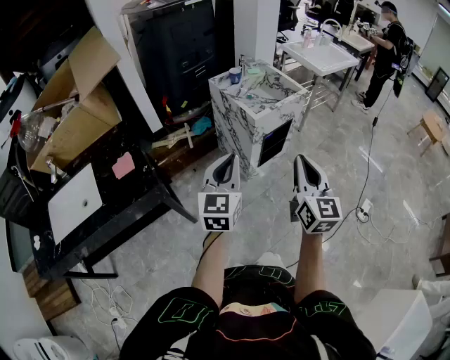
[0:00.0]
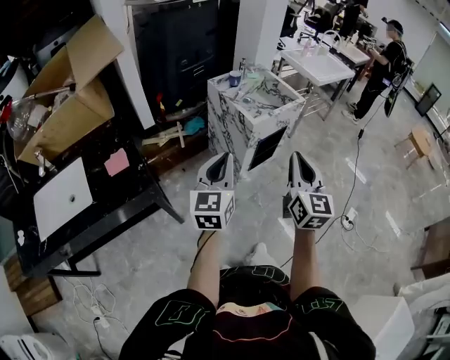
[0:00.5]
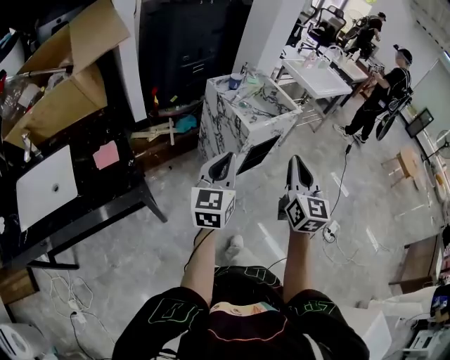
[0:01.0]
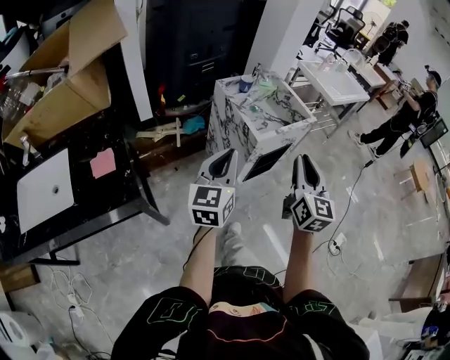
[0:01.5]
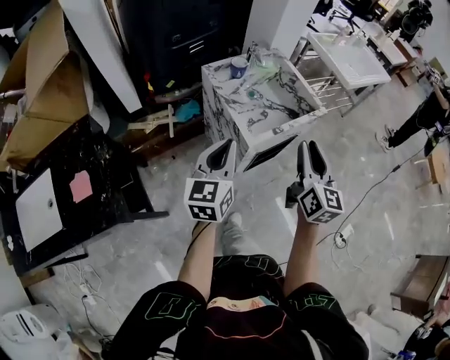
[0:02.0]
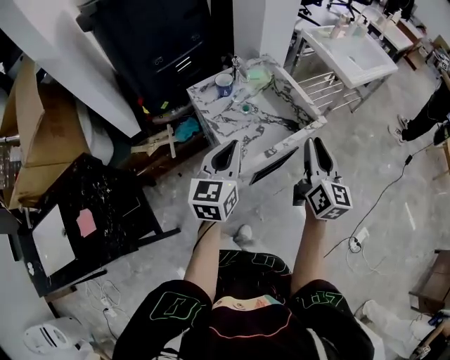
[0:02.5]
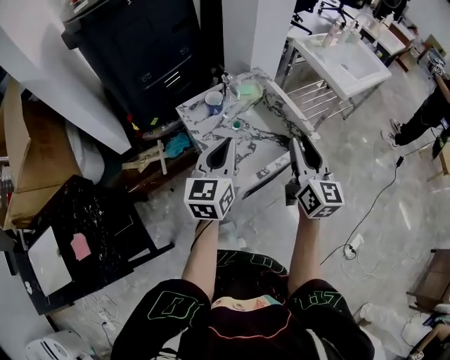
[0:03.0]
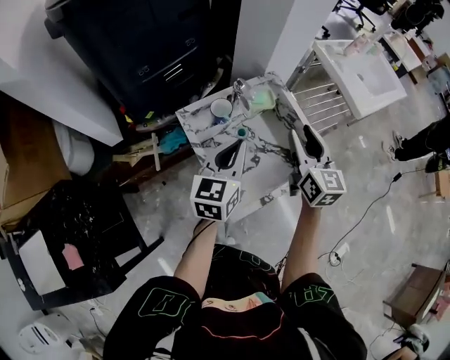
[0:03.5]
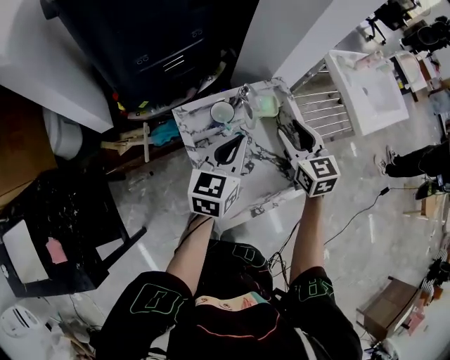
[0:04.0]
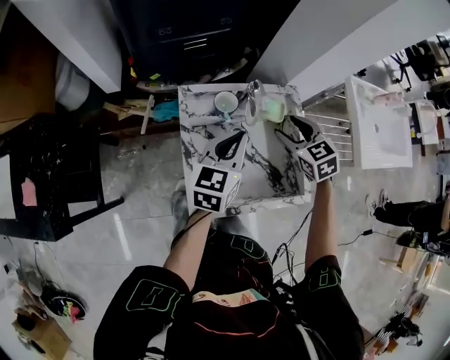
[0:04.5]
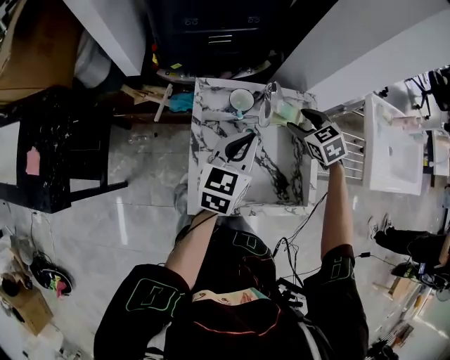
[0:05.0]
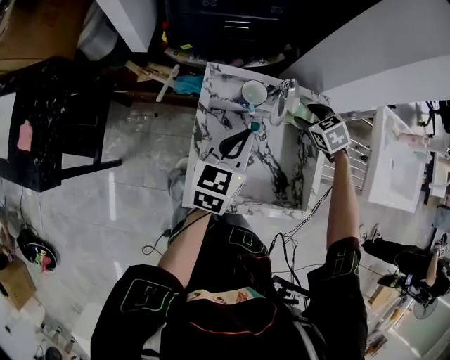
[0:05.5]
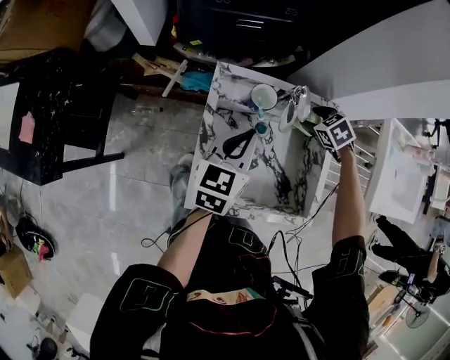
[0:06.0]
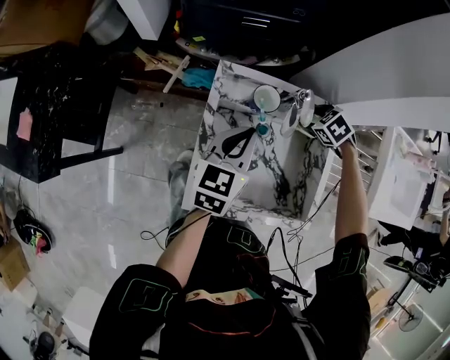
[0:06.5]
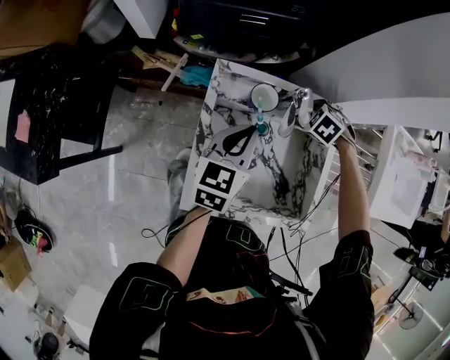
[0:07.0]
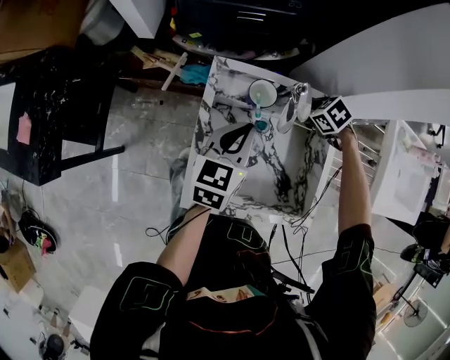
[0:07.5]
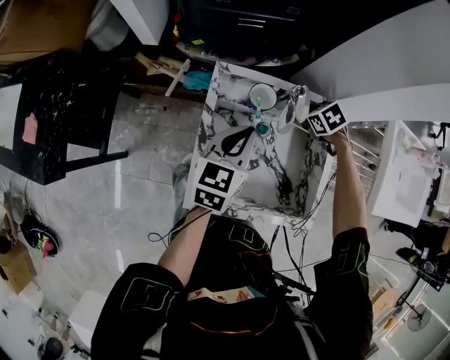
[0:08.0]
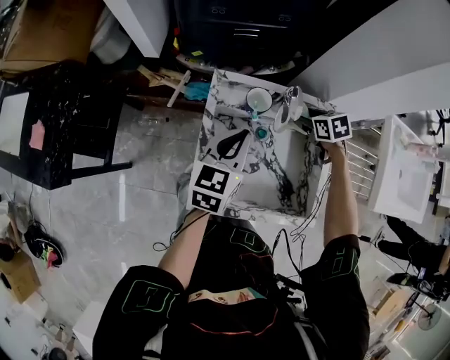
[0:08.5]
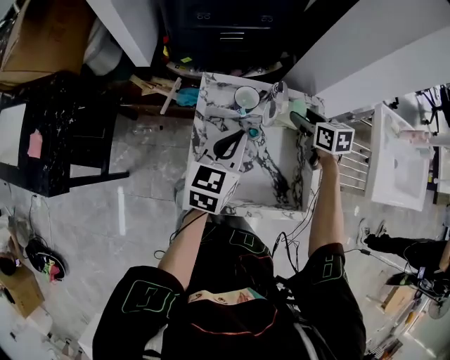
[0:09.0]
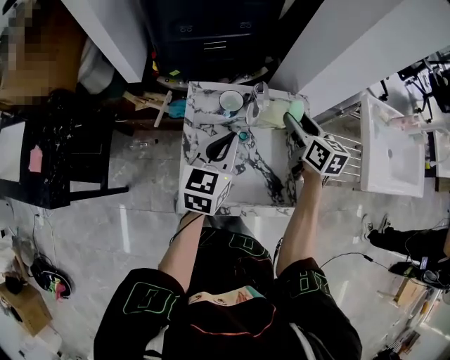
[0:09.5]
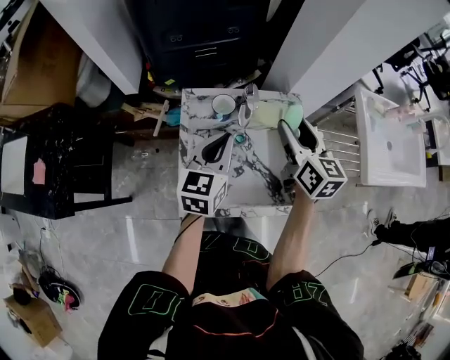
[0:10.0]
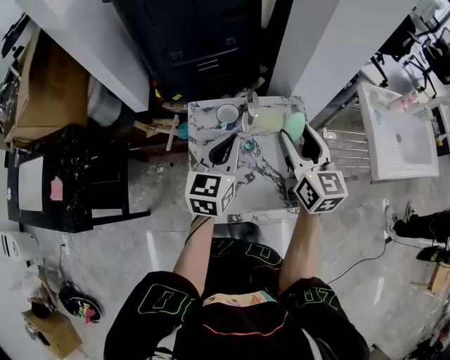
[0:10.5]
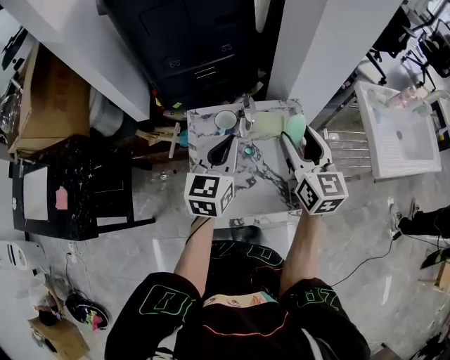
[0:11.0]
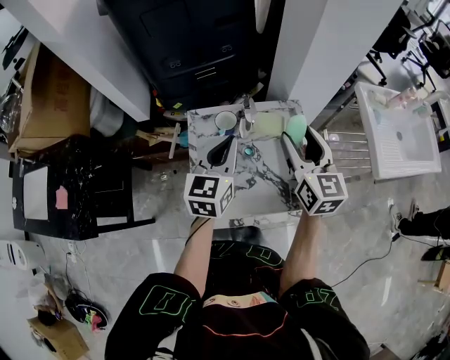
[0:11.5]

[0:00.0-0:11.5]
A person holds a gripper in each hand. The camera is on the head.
0:00.0 to 0:02.0: The two grippers go roughly 35 cm forward. The right gripper opens.
0:02.0 to 0:04.0: The two grippers go approximately 40 cm forward. The right gripper changes its angle by approximately 40 degrees.
0:04.0 to 0:06.0: The right gripper shifts roughly 20 cm downward, and points its fingers some 50 degrees further downward, while the left gripper goes approximately 5 cm downward, and changes its angle by roughly 30 degrees.
0:07.5 to 0:09.5: The right gripper goes some 20 cm upward, and points its fingers roughly 50 degrees further upward. The left gripper goes about 5 cm upward.
0:09.5 to 0:11.5: The left gripper moves approximately 5 cm. The right gripper shifts roughly 15 cm upward and backward, and turns by approximately 20 degrees.

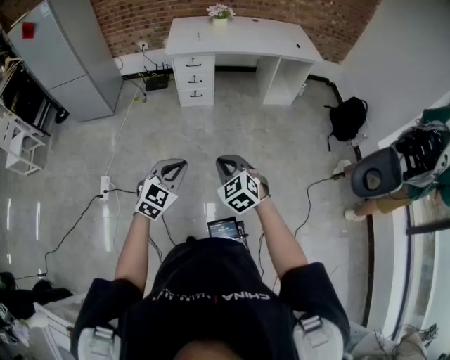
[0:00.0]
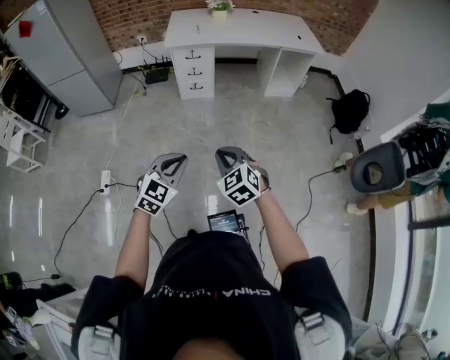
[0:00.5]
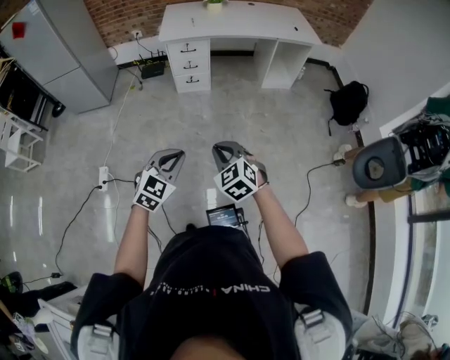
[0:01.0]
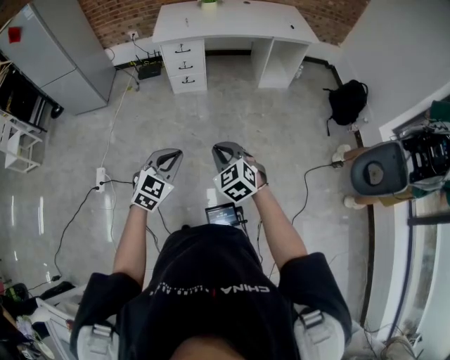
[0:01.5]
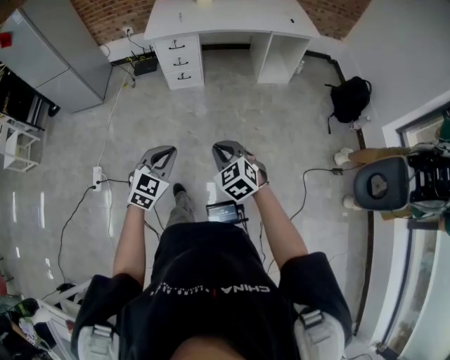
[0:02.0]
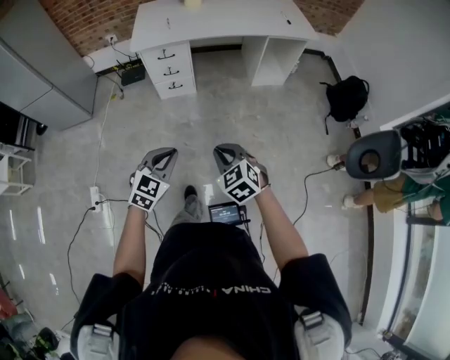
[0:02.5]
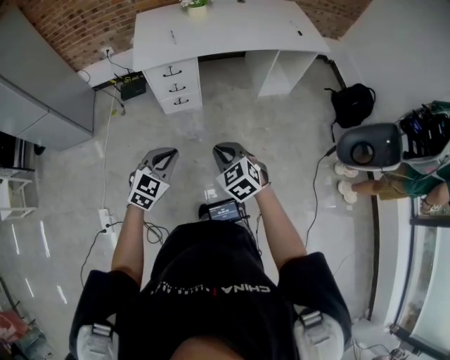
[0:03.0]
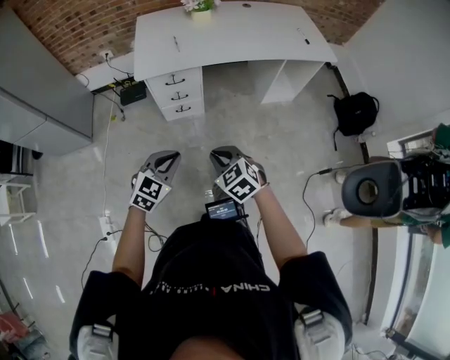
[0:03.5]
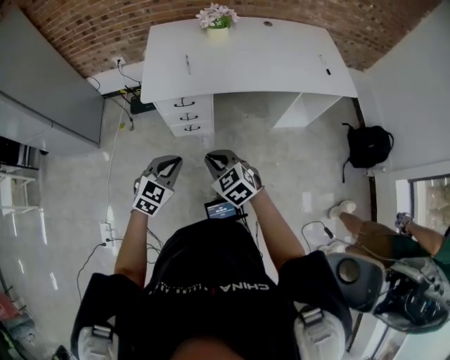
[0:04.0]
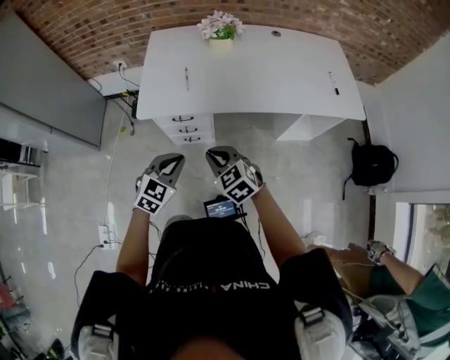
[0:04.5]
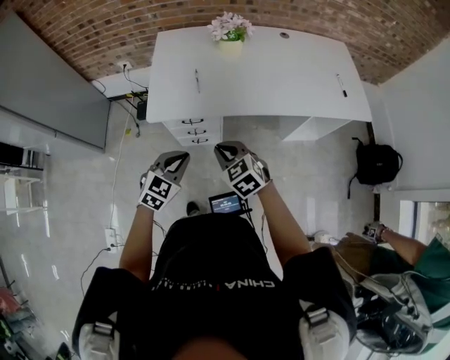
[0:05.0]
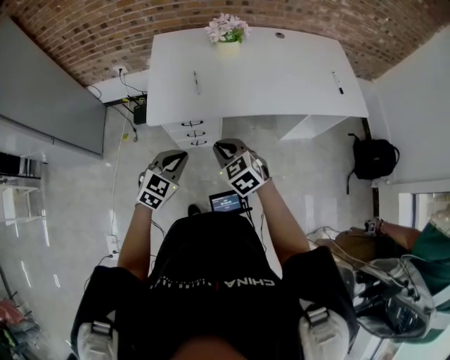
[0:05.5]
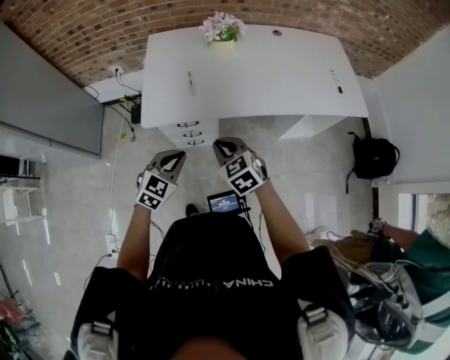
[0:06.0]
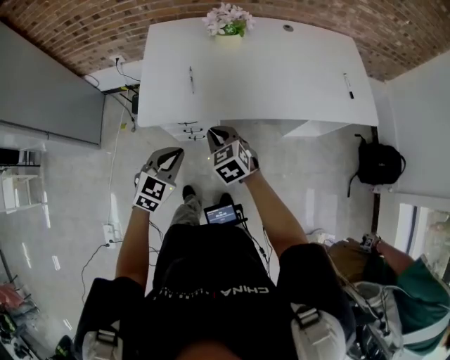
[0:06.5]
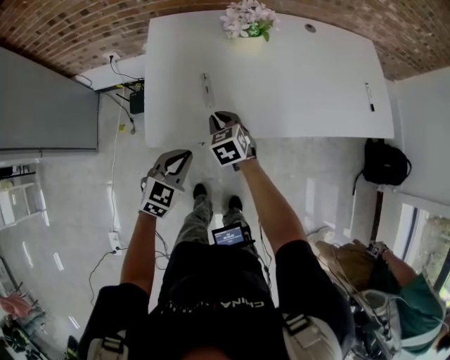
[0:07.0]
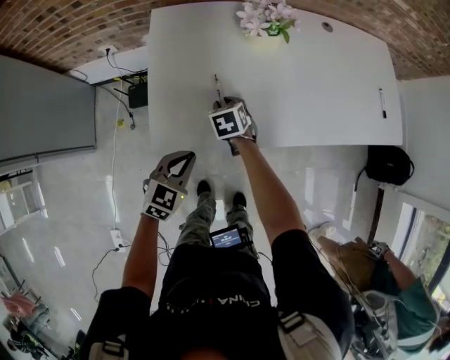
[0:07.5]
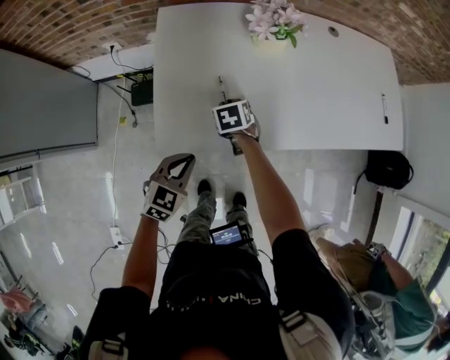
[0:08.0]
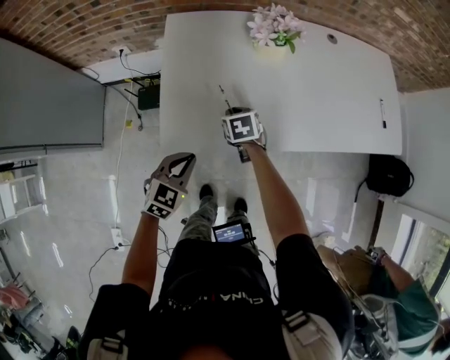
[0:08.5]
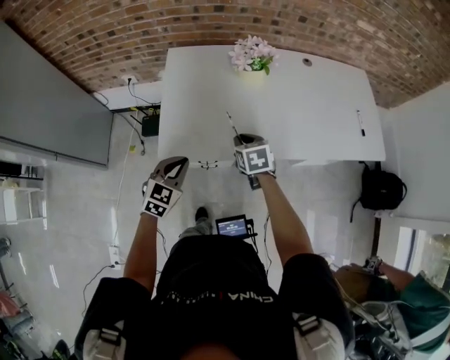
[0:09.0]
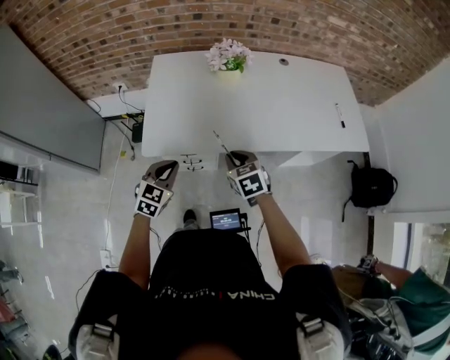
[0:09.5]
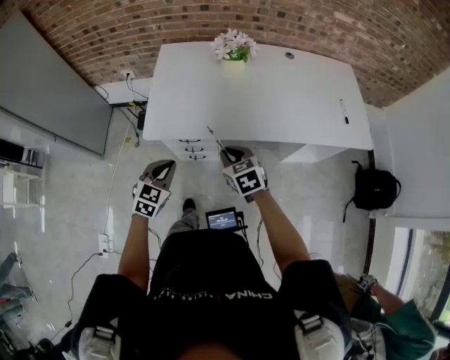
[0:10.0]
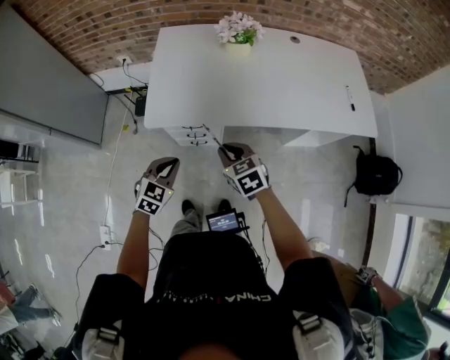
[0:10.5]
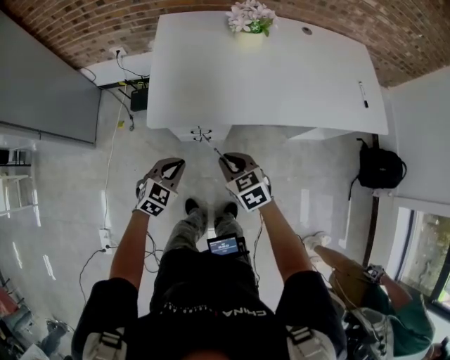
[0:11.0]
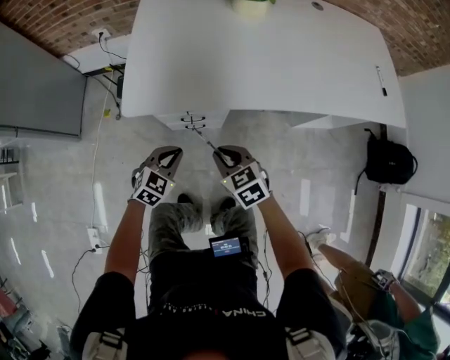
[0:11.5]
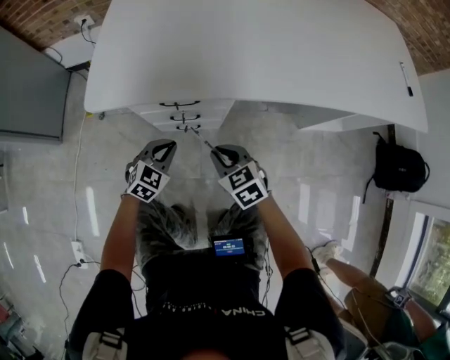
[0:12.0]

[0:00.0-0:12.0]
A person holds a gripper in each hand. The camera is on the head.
0:00.0 to 0:02.0: The grippers both shift to the right and forward by roughly 10 cm.
0:02.0 to 0:04.0: The two grippers travel together, forward, roughly 60 cm.
0:04.0 to 0:06.0: The grippers both shift forward by some 20 cm.
0:06.0 to 0:08.0: The right gripper moves forward, downward and to the left, roughly 40 cm, and swivels approximately 40 degrees. Meanwhile the left gripper is displaced forward, to the left and downward by about 25 cm.
0:08.0 to 0:10.0: The right gripper is displaced backward, upward and to the right by approximately 35 cm, and rotates about 30 degrees, while the left gripper heads backward, upward and to the right, covering approximately 20 cm.
0:10.0 to 0:12.0: The grippers both shift downward by about 40 cm.

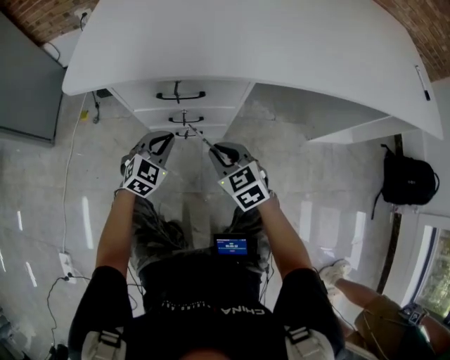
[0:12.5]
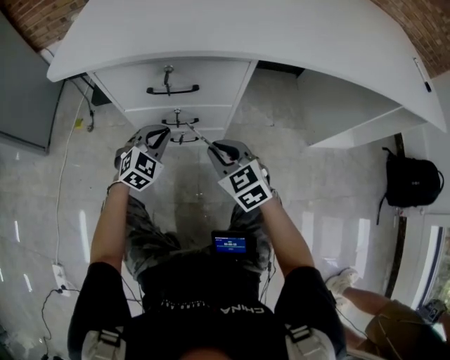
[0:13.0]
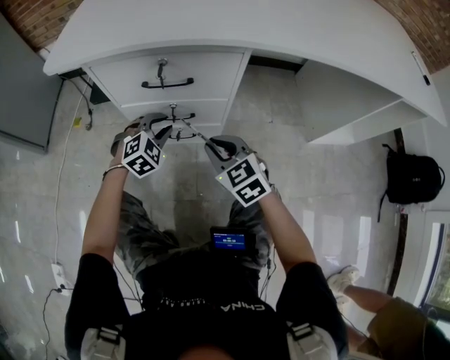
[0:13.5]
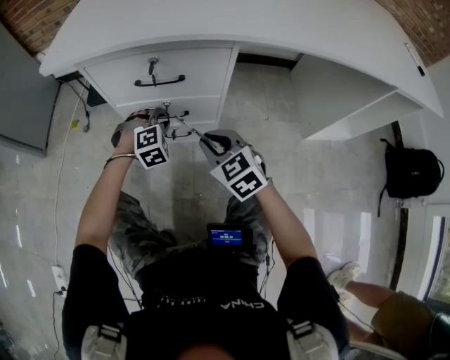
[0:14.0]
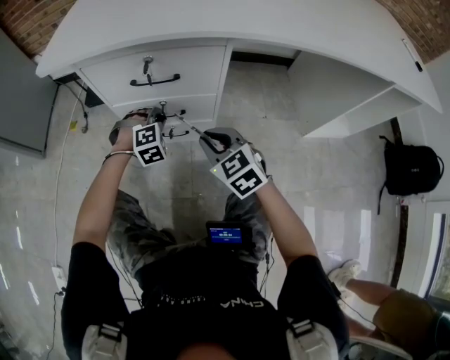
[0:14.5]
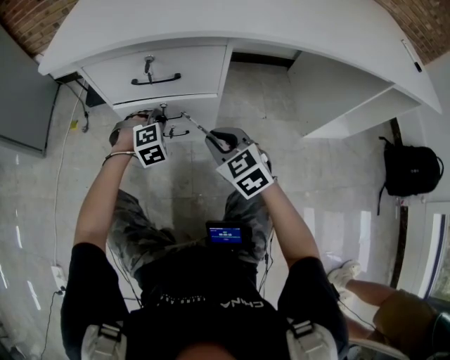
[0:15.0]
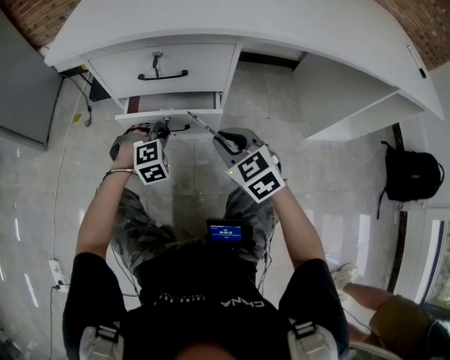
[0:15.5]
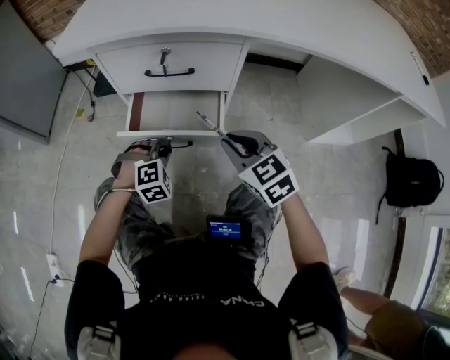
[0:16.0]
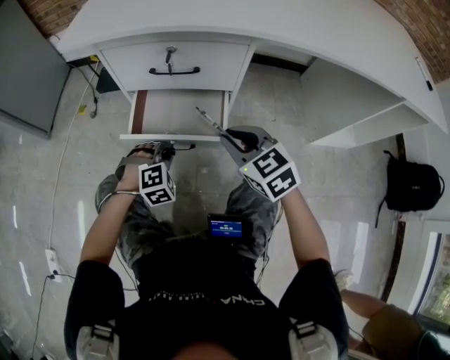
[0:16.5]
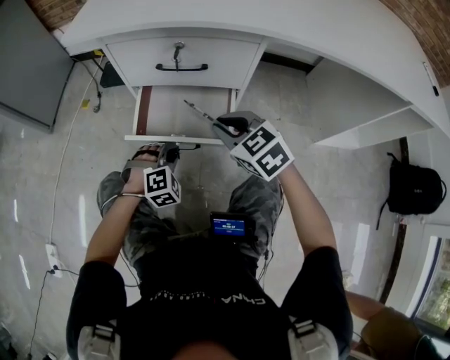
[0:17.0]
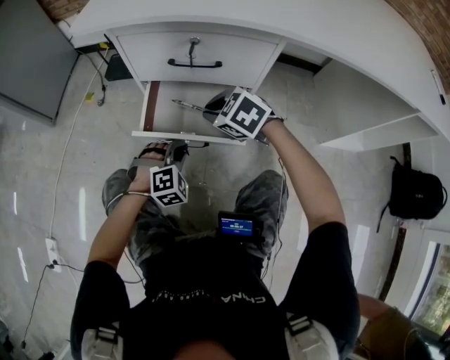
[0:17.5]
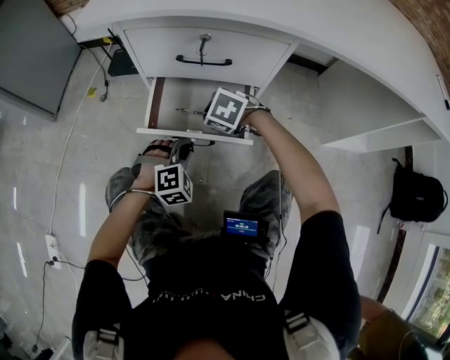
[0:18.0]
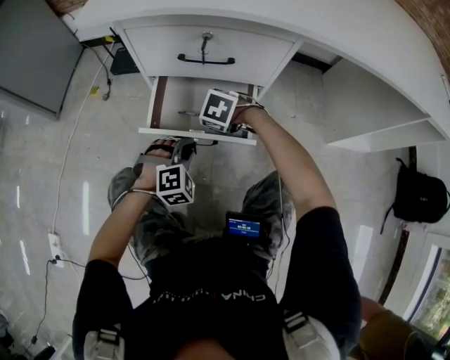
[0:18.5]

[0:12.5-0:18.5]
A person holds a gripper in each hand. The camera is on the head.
0:12.5 to 0:14.5: The left gripper is displaced downward and forward by approximately 10 cm, and rotates about 40 degrees.
0:14.5 to 0:16.5: The left gripper travels backward by about 15 cm; the right gripper changes place by about 5 cm.
0:16.5 to 0:18.5: The right gripper moves downward, forward and to the left, roughly 20 cm, and angles its fingers downward, by some 40 degrees.
